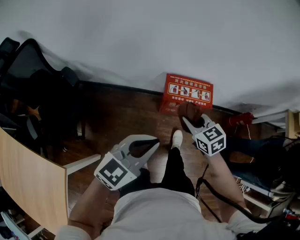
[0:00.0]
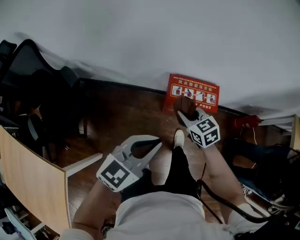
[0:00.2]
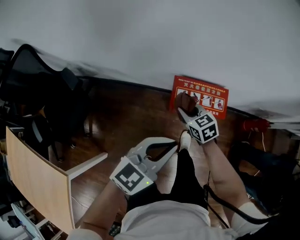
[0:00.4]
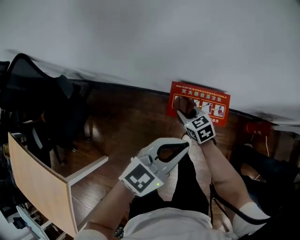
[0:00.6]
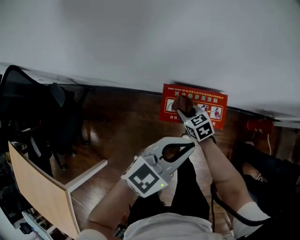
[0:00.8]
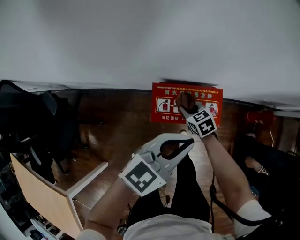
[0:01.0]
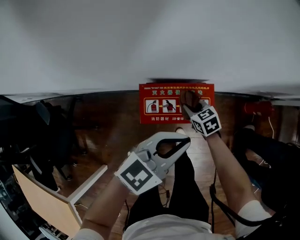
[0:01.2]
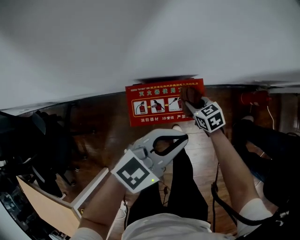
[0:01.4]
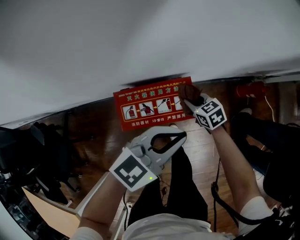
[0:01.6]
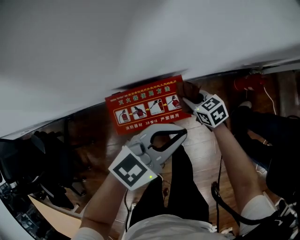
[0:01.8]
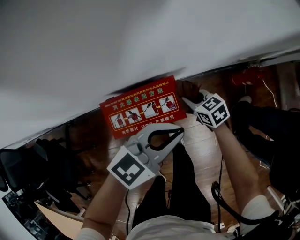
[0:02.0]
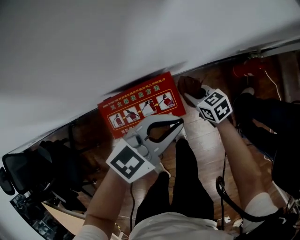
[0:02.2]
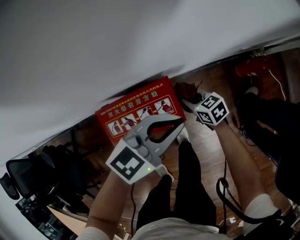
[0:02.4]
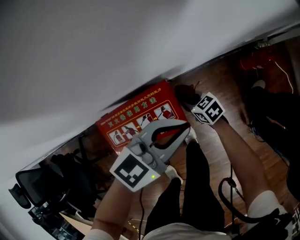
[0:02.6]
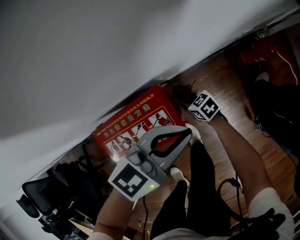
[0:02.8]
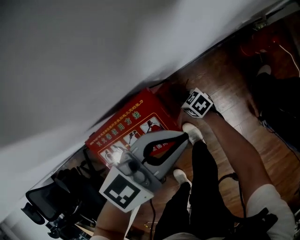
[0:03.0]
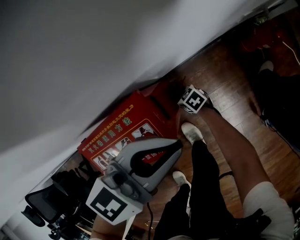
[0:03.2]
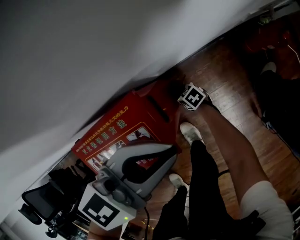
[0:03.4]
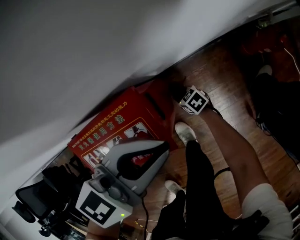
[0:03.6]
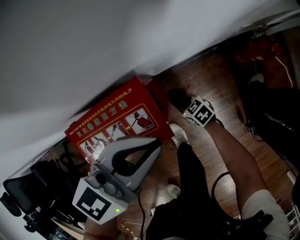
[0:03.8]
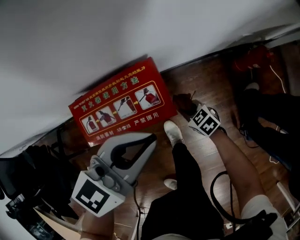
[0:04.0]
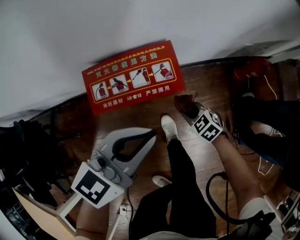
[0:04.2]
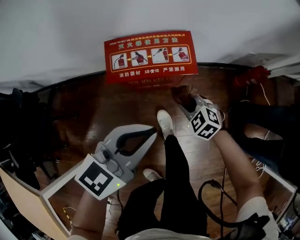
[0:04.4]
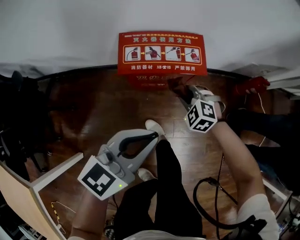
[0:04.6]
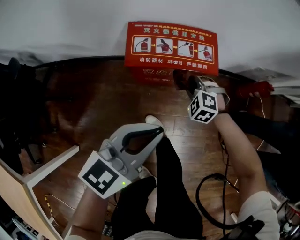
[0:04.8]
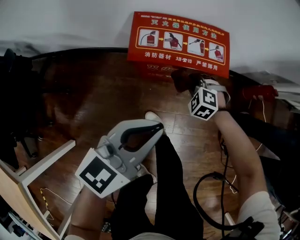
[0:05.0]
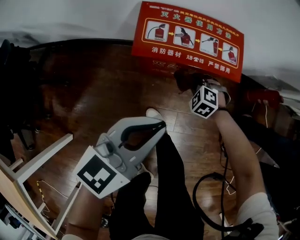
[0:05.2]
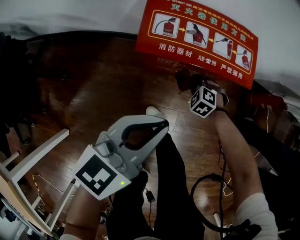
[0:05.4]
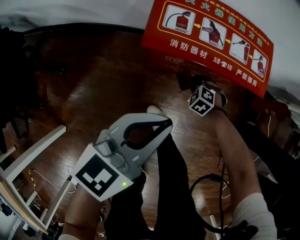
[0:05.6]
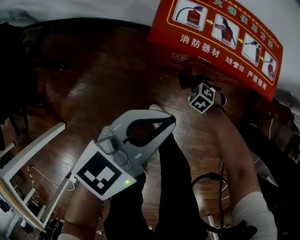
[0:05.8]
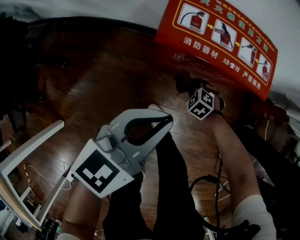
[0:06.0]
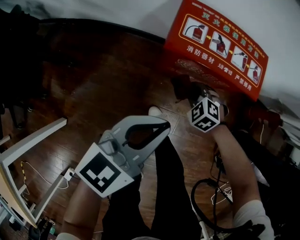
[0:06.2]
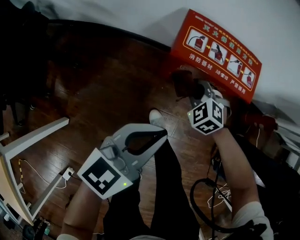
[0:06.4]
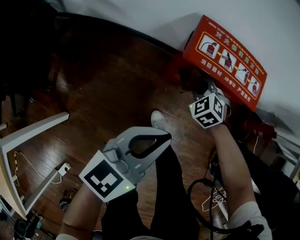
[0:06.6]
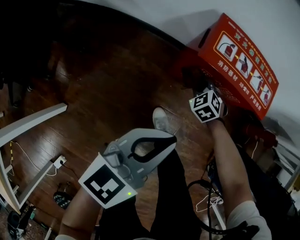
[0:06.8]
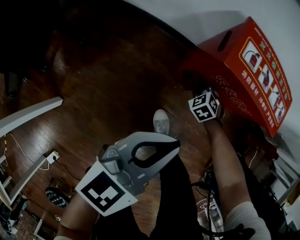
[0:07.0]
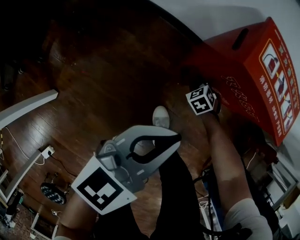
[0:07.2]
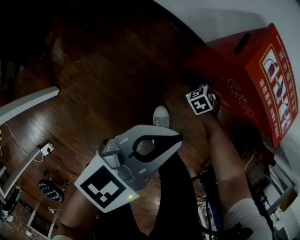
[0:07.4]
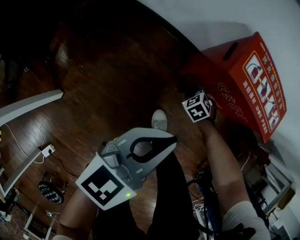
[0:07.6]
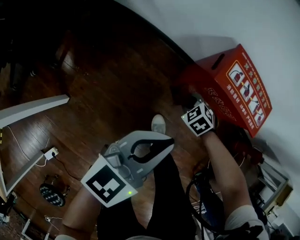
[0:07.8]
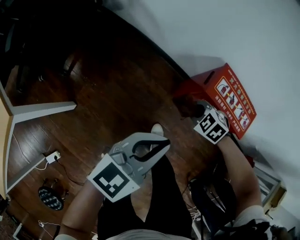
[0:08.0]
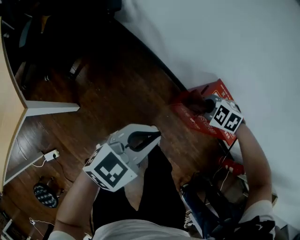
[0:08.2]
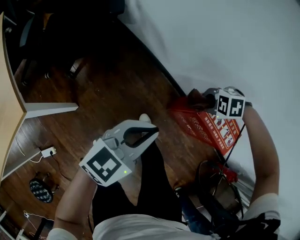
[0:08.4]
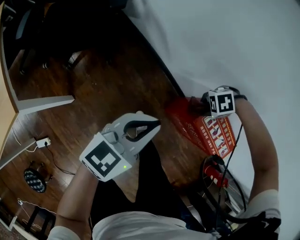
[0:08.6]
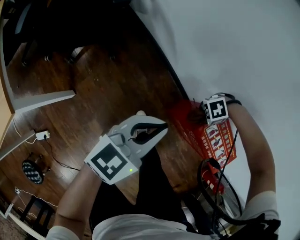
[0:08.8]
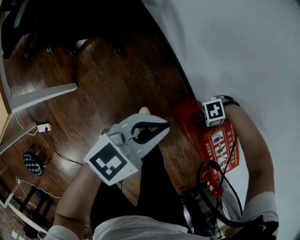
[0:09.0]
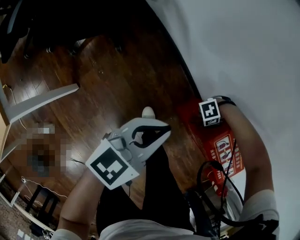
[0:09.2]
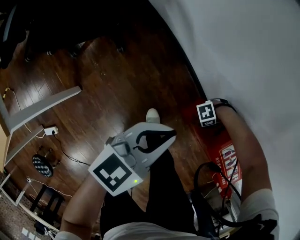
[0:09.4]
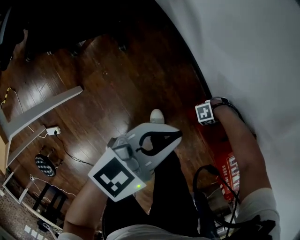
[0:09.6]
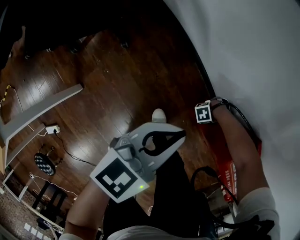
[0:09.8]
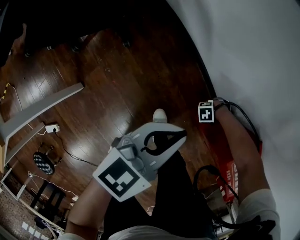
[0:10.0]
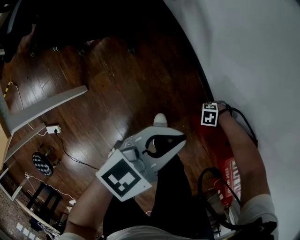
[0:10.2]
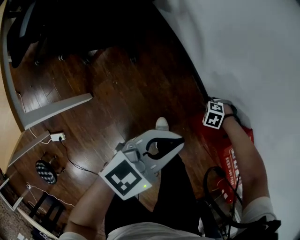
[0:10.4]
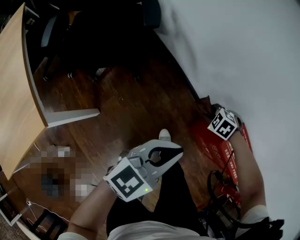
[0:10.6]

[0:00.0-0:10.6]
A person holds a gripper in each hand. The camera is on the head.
0:00.0 to 0:01.6: The left gripper travels to the right, forward and downward by roughly 40 cm, and swivels about 30 degrees. The right gripper shifts roughly 40 cm downward, forward and to the right, and changes its angle by some 20 degrees.
0:01.6 to 0:03.0: The right gripper shifts approximately 25 cm downward. The left gripper is displaced downward by approximately 10 cm.
0:03.0 to 0:04.6: The right gripper goes some 20 cm upward, and twists roughly 70 degrees counterclockwise, seen from behind, while the left gripper moves about 35 cm, and turns by about 30 degrees.
0:04.6 to 0:06.0: The left gripper moves downward, about 15 cm; the right gripper travels downward by roughly 25 cm.
0:06.0 to 0:07.6: The left gripper goes upward and returns, approximately 5 cm each way. Meanwhile the right gripper goes up and down, about 25 cm each way, reversing 2 times.
0:07.6 to 0:09.0: The left gripper changes place by roughly 20 cm; the right gripper moves upward, about 20 cm, and tilts its fingers some 30 degrees upward.
0:09.0 to 0:10.6: The right gripper reaches about 25 cm downward, then returns, and angles its fingers downward, by approximately 40 degrees. The left gripper changes place by approximately 10 cm.

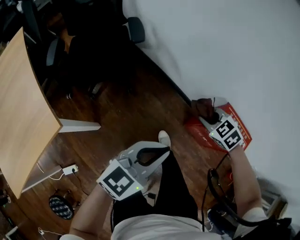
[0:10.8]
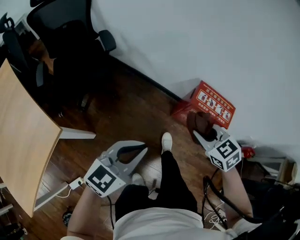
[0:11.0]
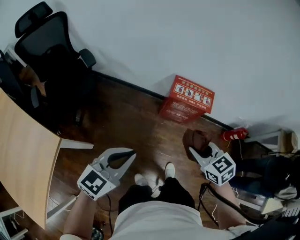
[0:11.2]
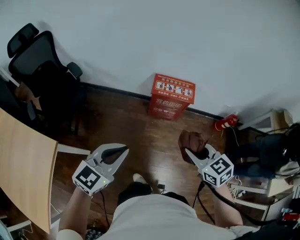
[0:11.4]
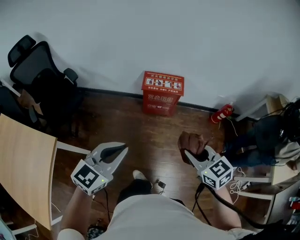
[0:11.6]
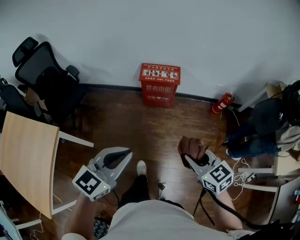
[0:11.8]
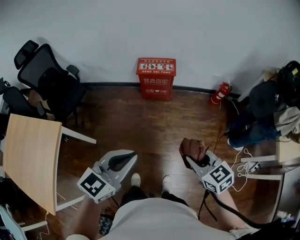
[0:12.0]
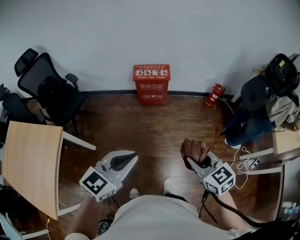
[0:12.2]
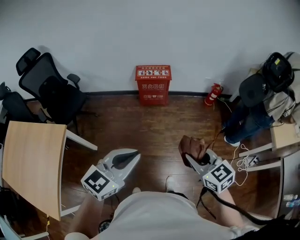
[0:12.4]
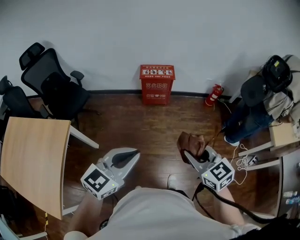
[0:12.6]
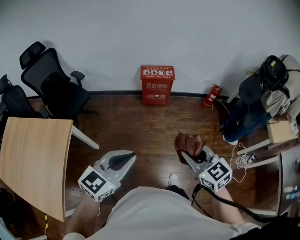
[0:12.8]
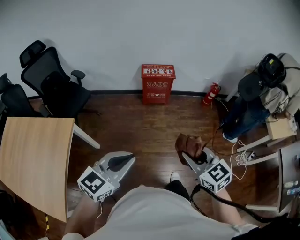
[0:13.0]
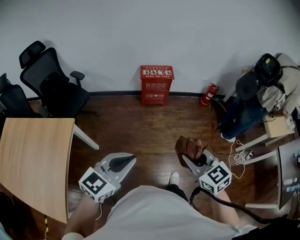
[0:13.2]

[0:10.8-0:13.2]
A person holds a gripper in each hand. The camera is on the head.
0:10.8 to 0:12.0: The pair of grippers is taken some 50 cm. The right gripper changes its angle by roughly 60 degrees, while the left gripper swivels roughly 30 degrees.
0:12.0 to 0:13.2: The right gripper goes about 20 cm to the left and backward; the left gripper goes roughly 20 cm backward and to the left.

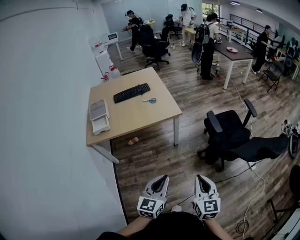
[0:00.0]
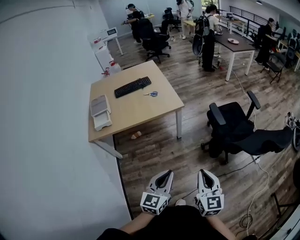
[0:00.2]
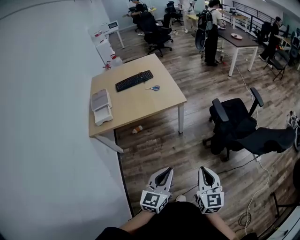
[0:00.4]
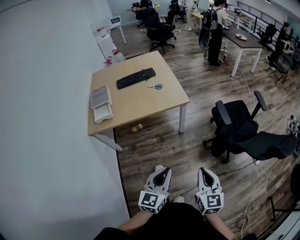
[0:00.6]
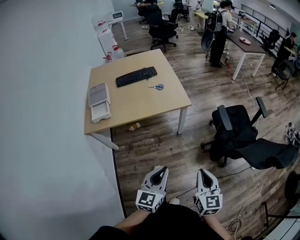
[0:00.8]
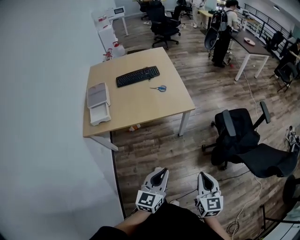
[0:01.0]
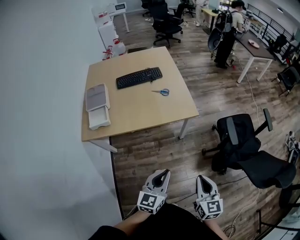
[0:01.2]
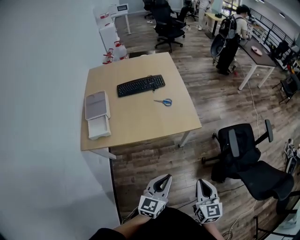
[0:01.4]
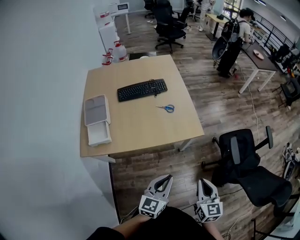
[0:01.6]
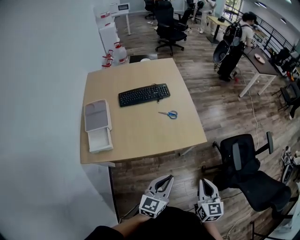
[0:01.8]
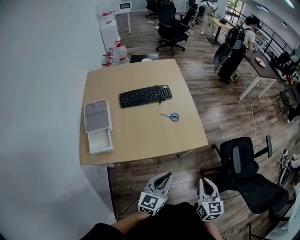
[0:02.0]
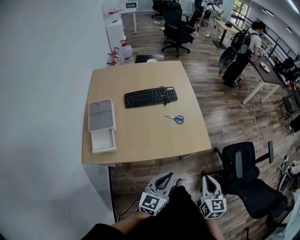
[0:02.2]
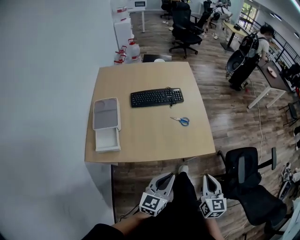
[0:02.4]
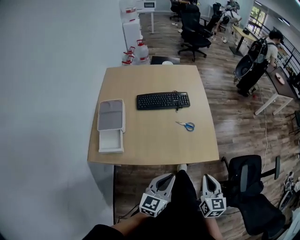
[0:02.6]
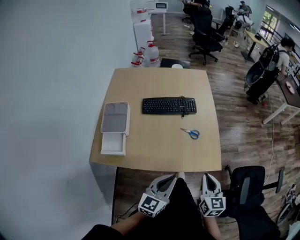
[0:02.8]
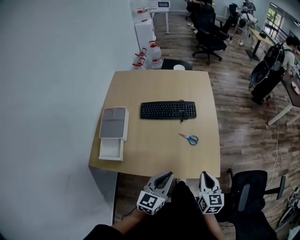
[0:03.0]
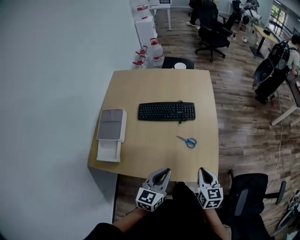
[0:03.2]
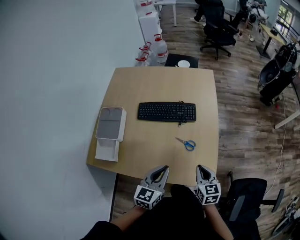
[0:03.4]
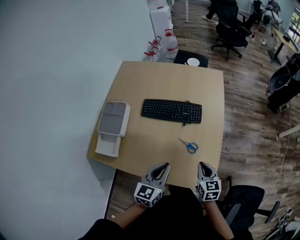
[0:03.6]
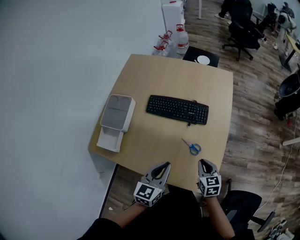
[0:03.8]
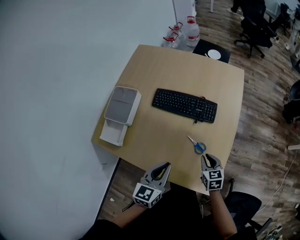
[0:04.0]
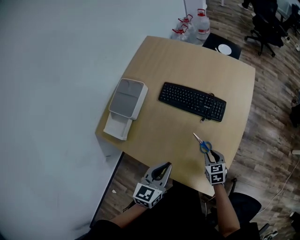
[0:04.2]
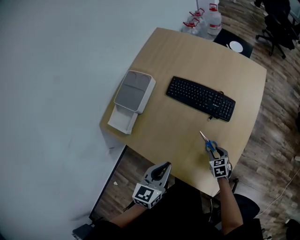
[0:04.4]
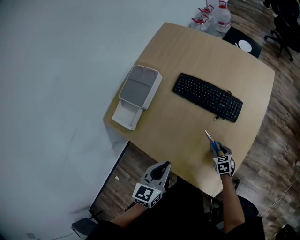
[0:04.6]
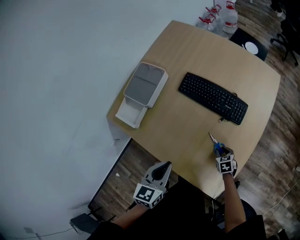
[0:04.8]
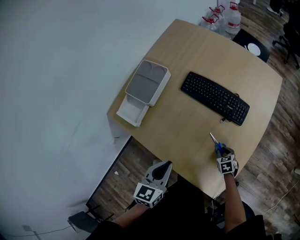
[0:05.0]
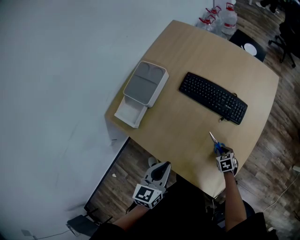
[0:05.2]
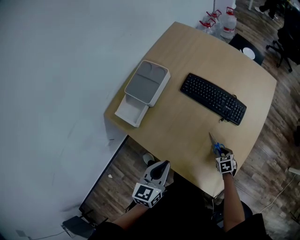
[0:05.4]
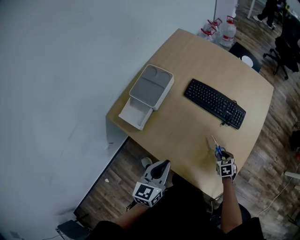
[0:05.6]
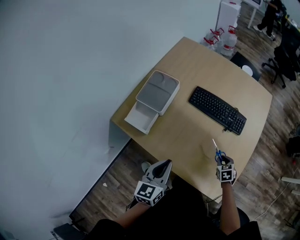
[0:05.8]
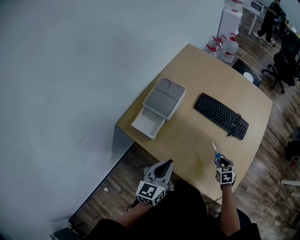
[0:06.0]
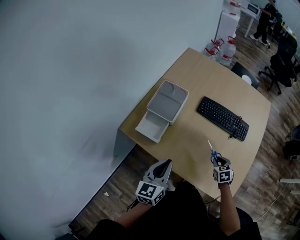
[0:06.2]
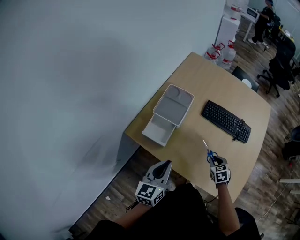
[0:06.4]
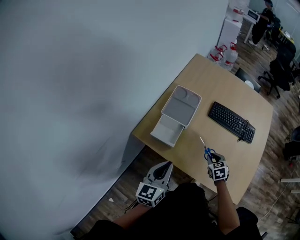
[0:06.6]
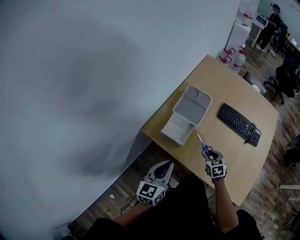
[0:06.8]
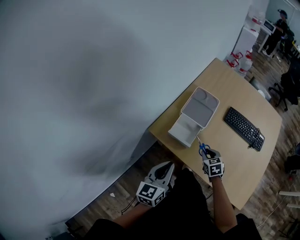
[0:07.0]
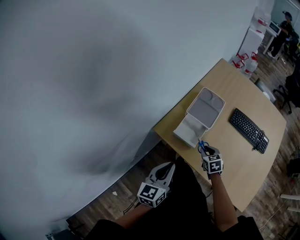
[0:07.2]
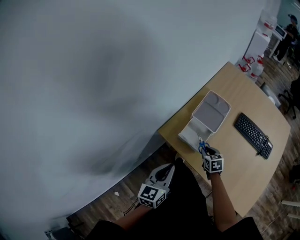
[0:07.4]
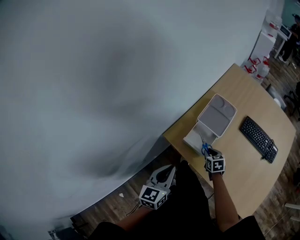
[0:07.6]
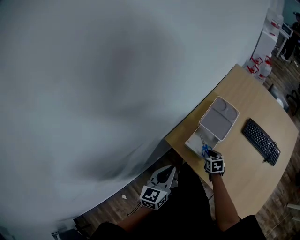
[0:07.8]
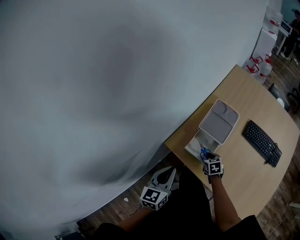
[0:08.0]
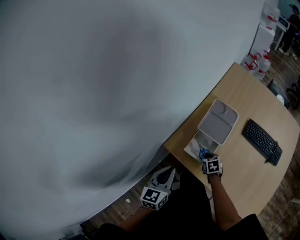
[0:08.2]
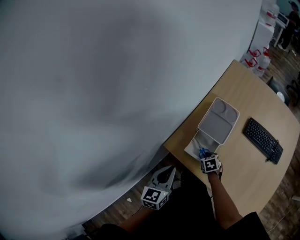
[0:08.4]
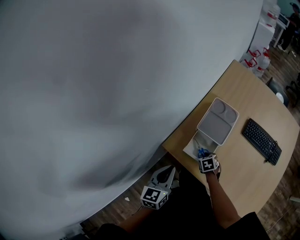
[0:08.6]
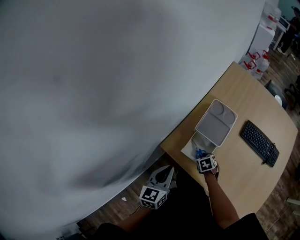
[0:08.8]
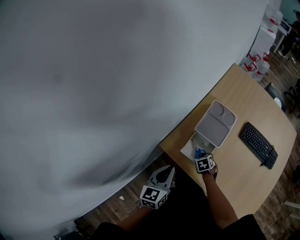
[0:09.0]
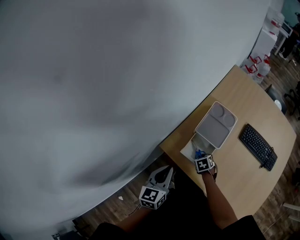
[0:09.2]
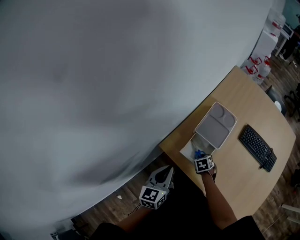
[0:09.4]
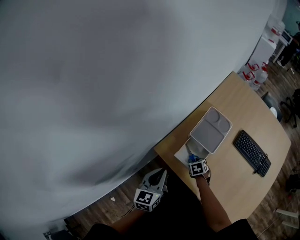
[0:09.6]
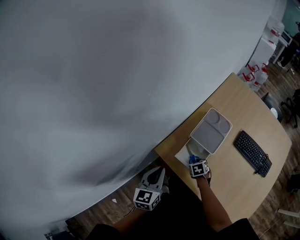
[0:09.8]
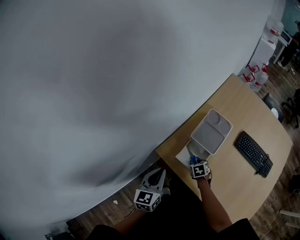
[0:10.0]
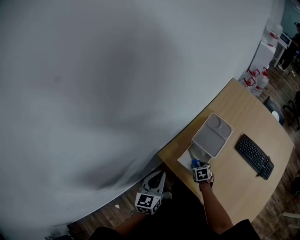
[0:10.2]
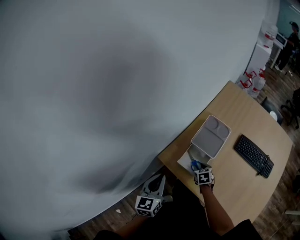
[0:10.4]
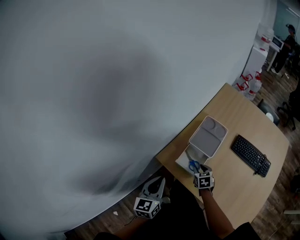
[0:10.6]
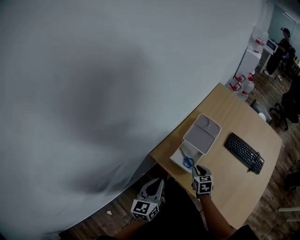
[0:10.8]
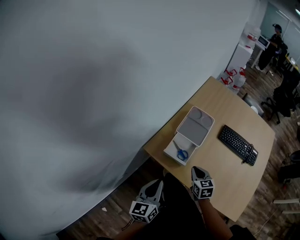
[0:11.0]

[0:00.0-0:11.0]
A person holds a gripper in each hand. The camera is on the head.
0:00.0 to 0:01.6: Both grippers move forward and to the left, some 30 cm.
0:01.6 to 0:03.2: The grippers both shift forward by roughly 30 cm.
0:03.2 to 0:04.8: The right gripper shifts roughly 30 cm downward, tilts its fingers some 40 degrees downward, and opens its fingers. The left gripper changes place by roughly 10 cm, and turns by some 40 degrees.
0:04.8 to 0:06.2: The left gripper goes some 20 cm to the left. The right gripper travels to the left and upward by approximately 20 cm.
0:06.2 to 0:07.8: Both grippers move to the left, some 30 cm.
0:07.8 to 0:09.4: The left gripper changes place by approximately 5 cm, while the right gripper moves roughly 5 cm, and swivels some 20 degrees.
0:09.4 to 0:11.0: The right gripper shifts some 15 cm upward, and angles its fingers upward, by some 30 degrees, while the left gripper changes place by about 10 cm.
